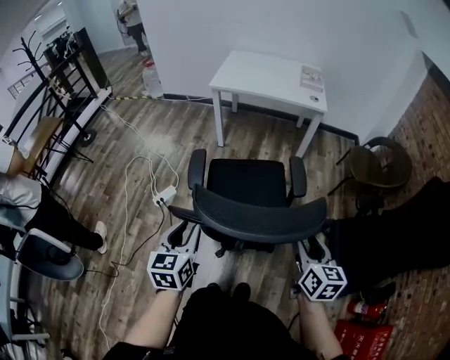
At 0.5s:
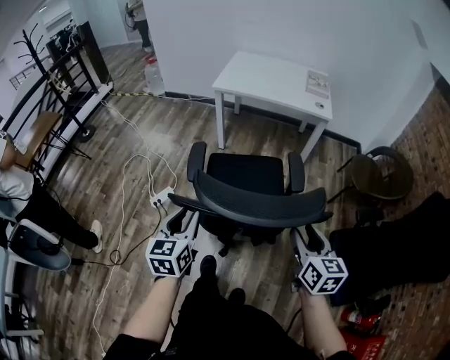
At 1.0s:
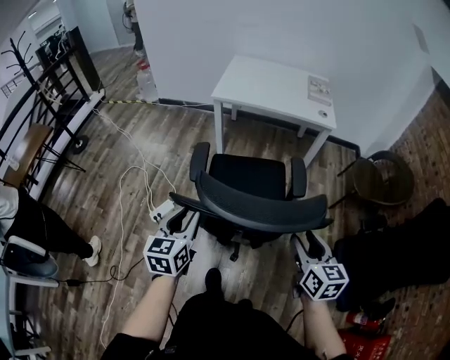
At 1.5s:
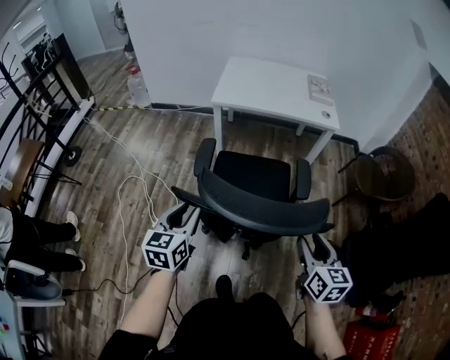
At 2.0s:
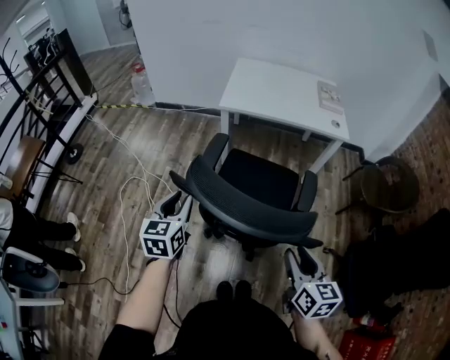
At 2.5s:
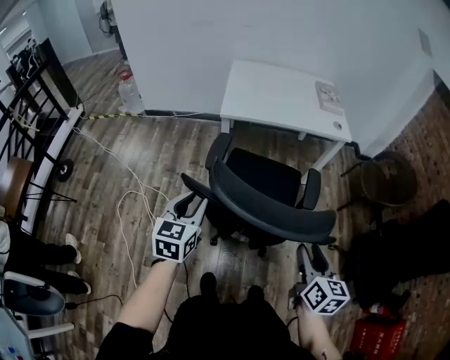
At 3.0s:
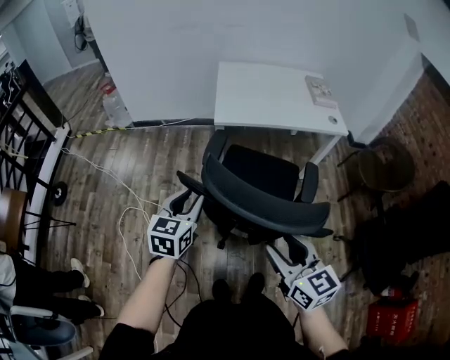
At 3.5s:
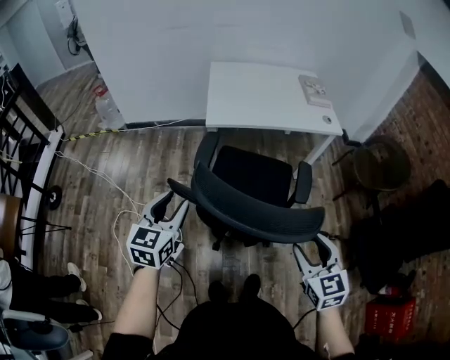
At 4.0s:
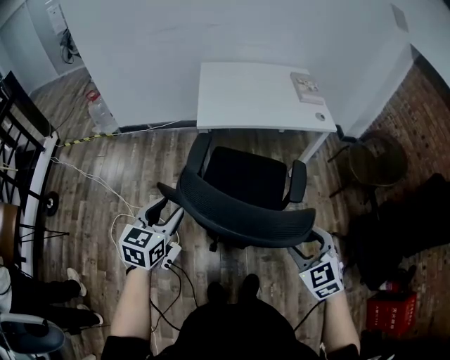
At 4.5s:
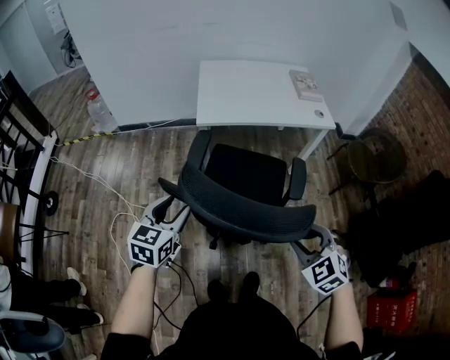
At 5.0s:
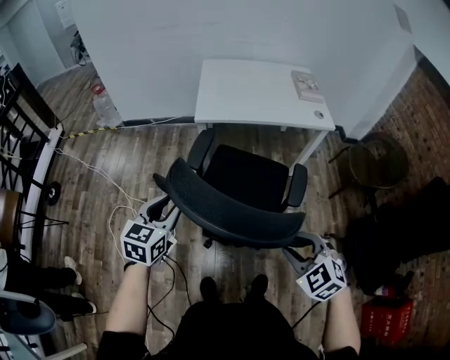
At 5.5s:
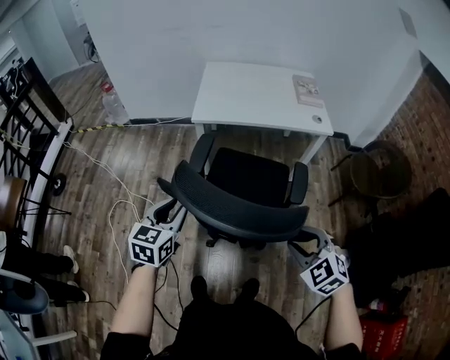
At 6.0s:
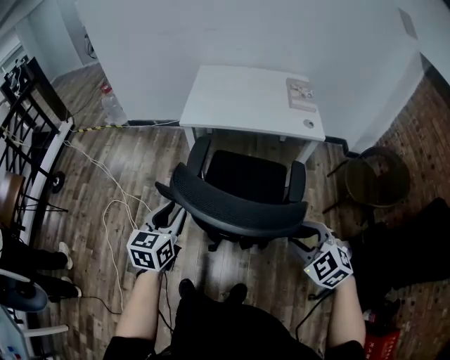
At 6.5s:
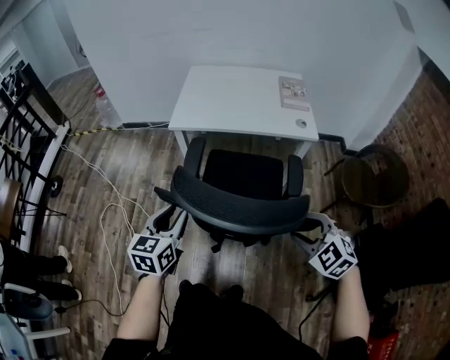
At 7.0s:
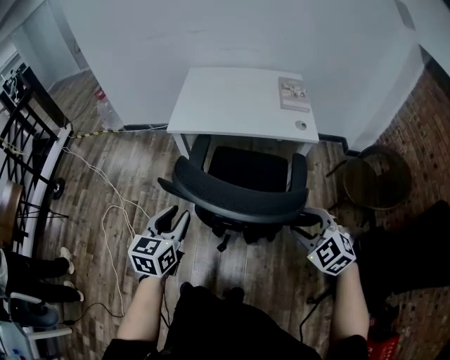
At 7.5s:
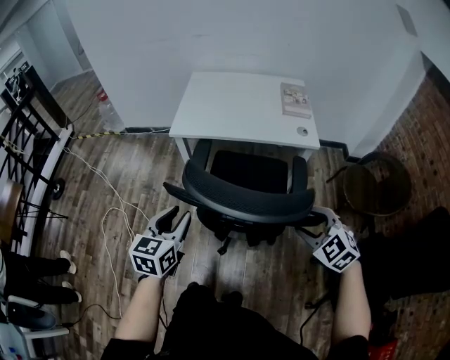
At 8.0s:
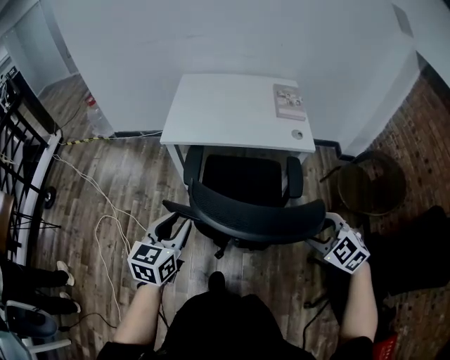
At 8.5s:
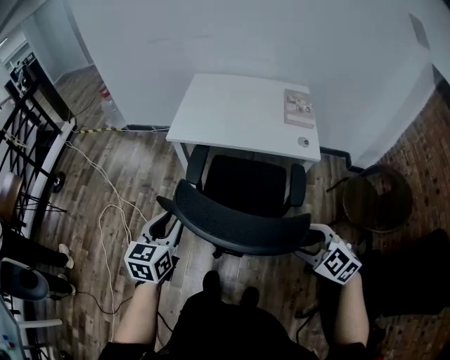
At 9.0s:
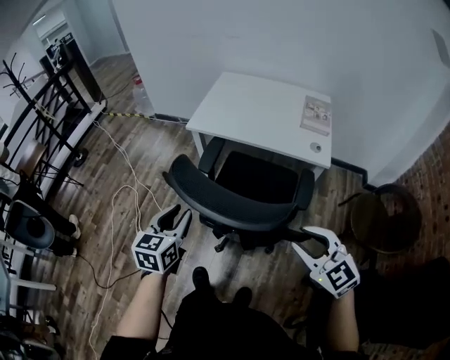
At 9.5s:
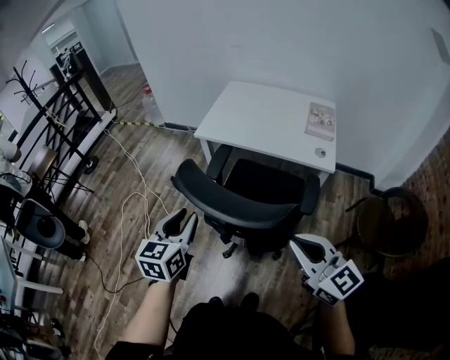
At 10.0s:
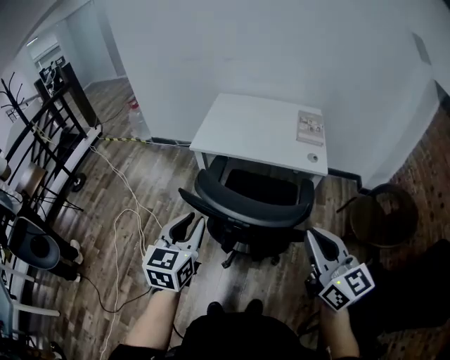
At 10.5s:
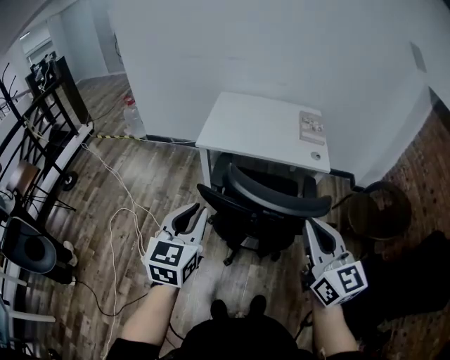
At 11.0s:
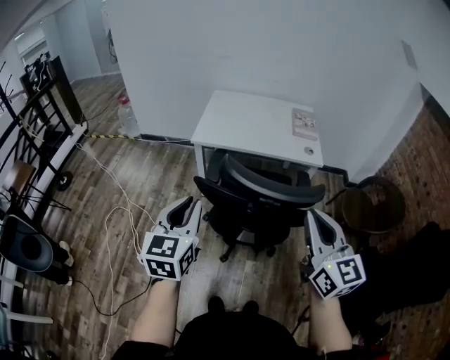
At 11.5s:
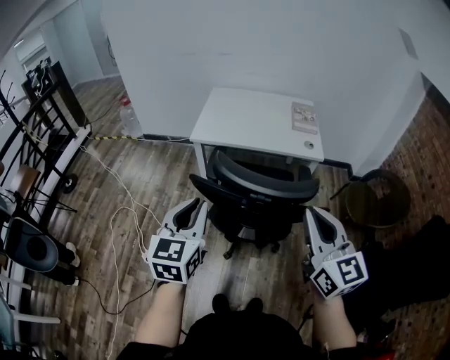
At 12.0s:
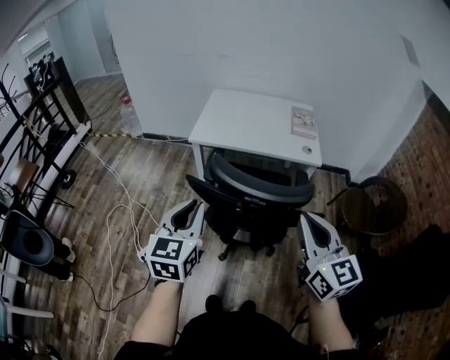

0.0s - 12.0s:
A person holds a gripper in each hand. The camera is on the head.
0.0s - 2.0s: Both grippers travel together forward and to the left, some 35 cm.
2.0s - 4.0s: Both grippers move forward and to the left, about 20 cm. The left gripper rotates some 30 degrees, while the right gripper rolls counterclockwise, seen from behind, by approximately 40 degrees, and opens up.
4.0s - 6.0s: Both grippers move to the right, about 20 cm. The right gripper rotates roughly 20 degrees.
6.0s - 8.0s: The two grippers go approximately 15 cm to the right and forward.
8.0s - 10.0s: The left gripper moves upward and backward, about 15 cm; the right gripper moves upward, some 20 cm, tips its fingers upward by roughly 50 degrees, and closes its fingers.
10.0s - 12.0s: The right gripper moves to the left, roughly 5 cm.

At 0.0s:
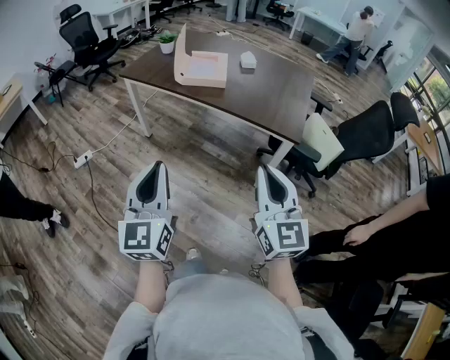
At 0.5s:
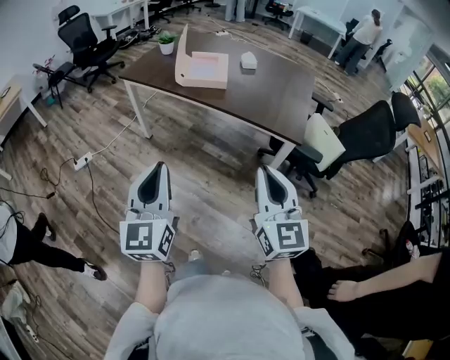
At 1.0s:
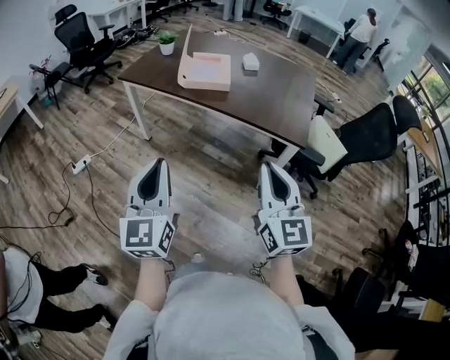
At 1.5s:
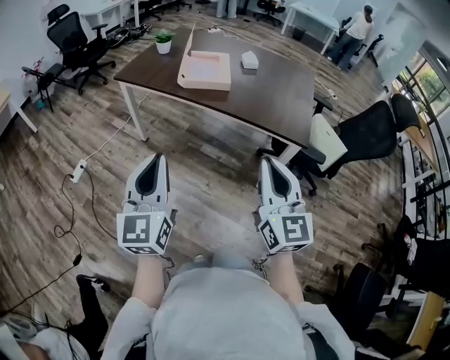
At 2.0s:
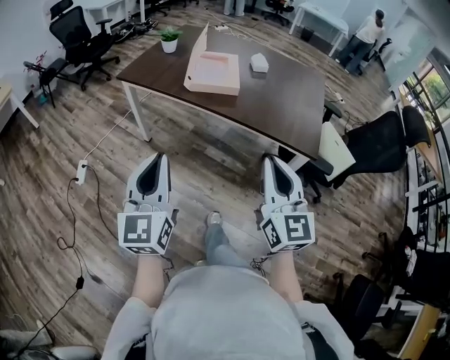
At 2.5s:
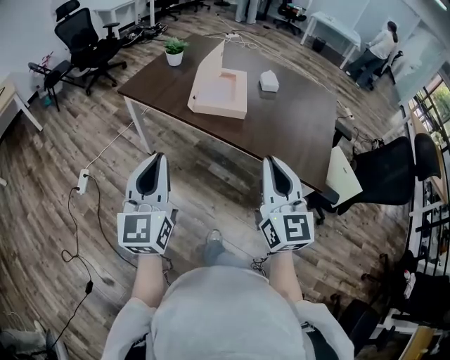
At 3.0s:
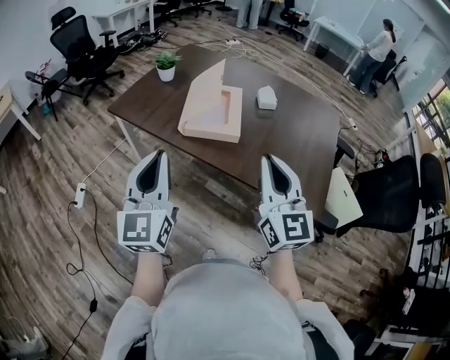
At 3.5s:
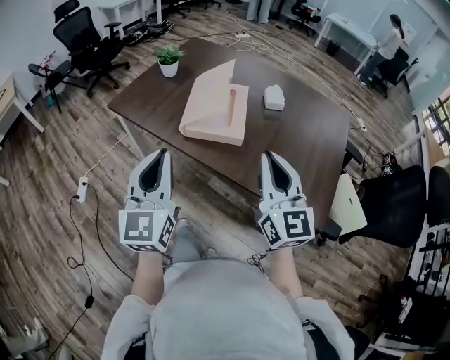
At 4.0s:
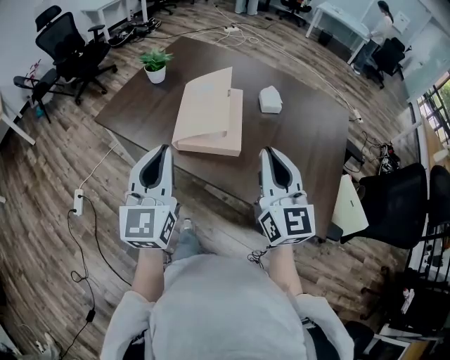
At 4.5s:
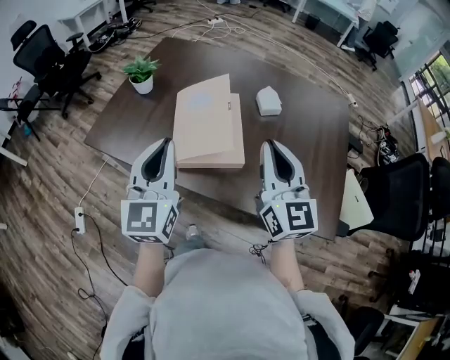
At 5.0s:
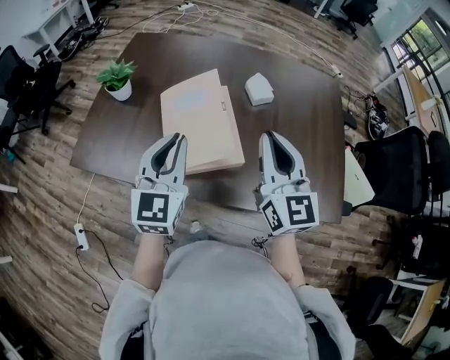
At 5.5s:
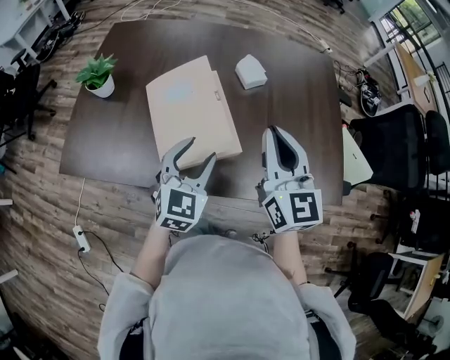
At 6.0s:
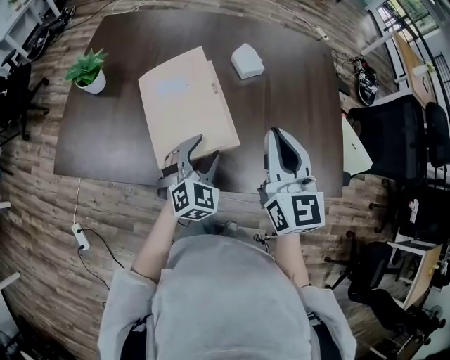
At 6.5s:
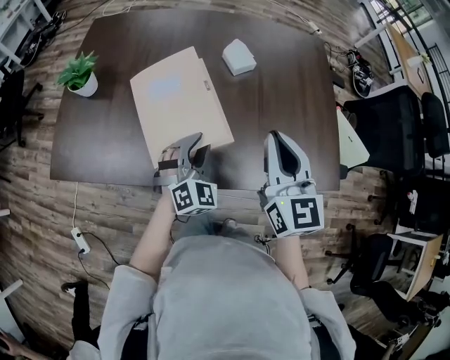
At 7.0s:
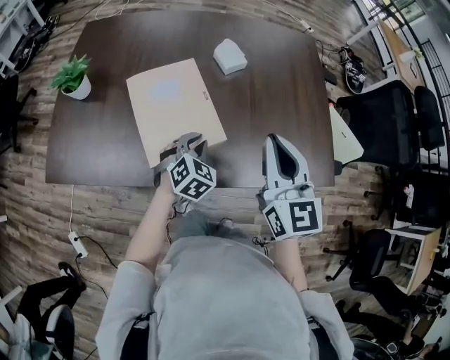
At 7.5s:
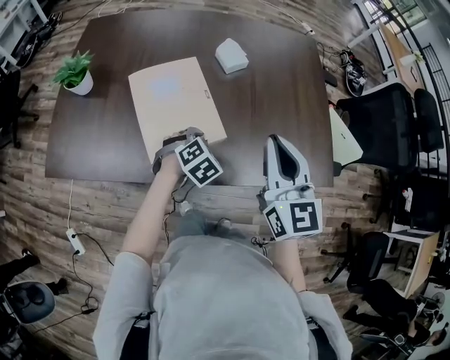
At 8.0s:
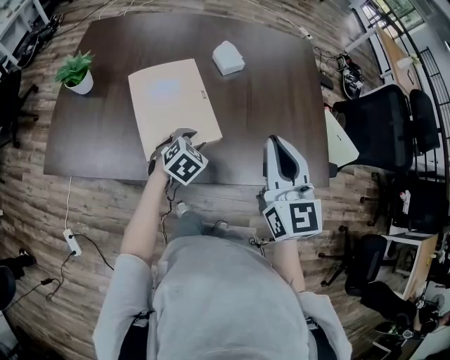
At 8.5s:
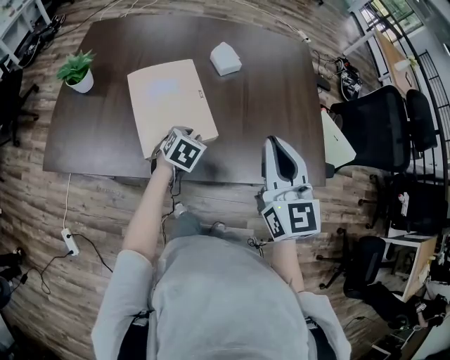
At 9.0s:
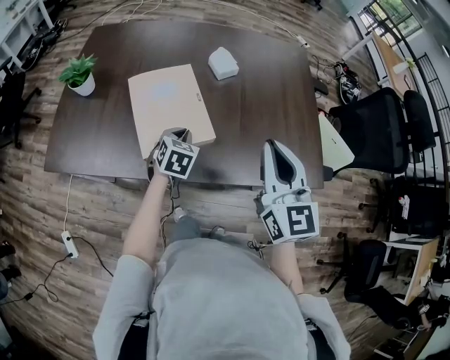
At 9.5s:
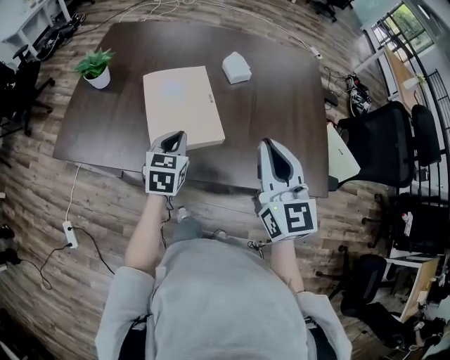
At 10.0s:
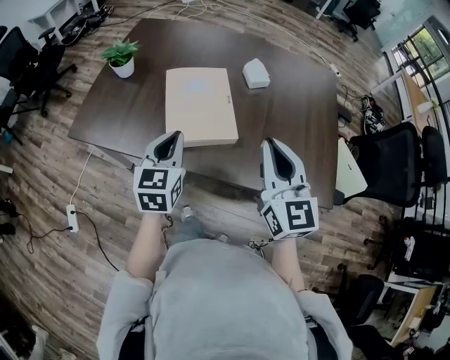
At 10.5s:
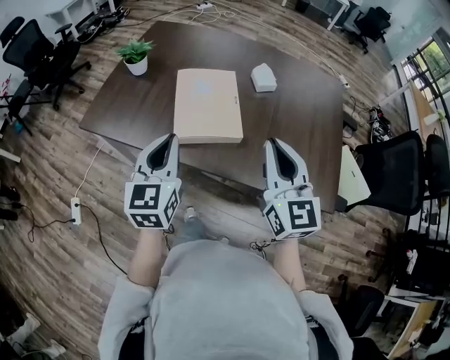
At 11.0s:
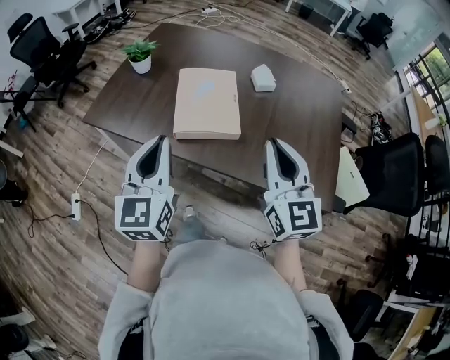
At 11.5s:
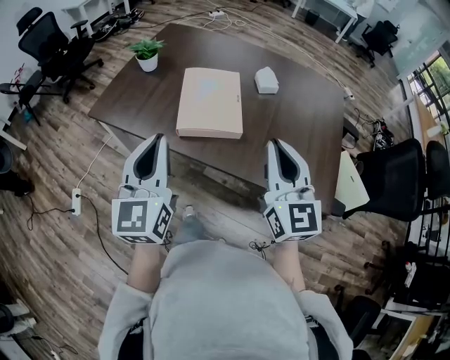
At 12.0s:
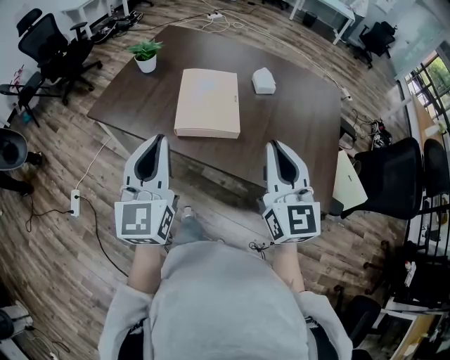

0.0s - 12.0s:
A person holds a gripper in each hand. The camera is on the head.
0.0s - 2.0s: Both grippers move forward and to the left, approximately 15 cm.
2.0s - 4.0s: The pair of grippers is taken forward, some 40 cm.
4.0s - 6.0s: The right gripper moves approximately 15 cm, and swivels roughly 30 degrees; the left gripper shifts approximately 25 cm downward, angles its fingers downward, by roughly 30 degrees, and opens.
6.0s - 8.0s: The right gripper ends up approximately 5 cm from where it was. Meanwhile the left gripper goes approximately 5 cm downward, changes its angle by roughly 30 degrees, and closes and opens again.
8.0s - 10.0s: The right gripper shifts by about 5 cm; the left gripper goes roughly 20 cm upward, to the left and backward, tilts its fingers approximately 30 degrees upward, and closes its fingers.
10.0s - 12.0s: The left gripper goes about 20 cm backward and upward, and turns by some 30 degrees. Meanwhile the right gripper heads backward, covering some 10 cm.

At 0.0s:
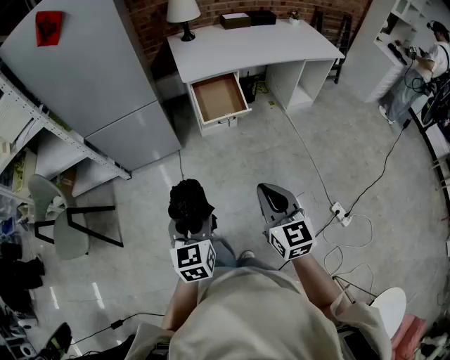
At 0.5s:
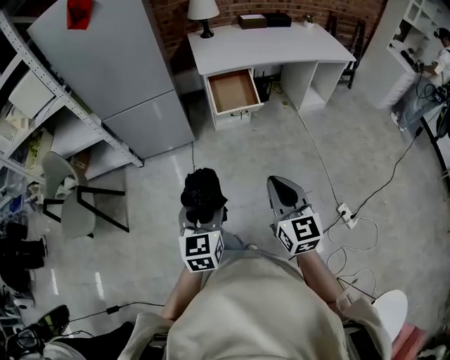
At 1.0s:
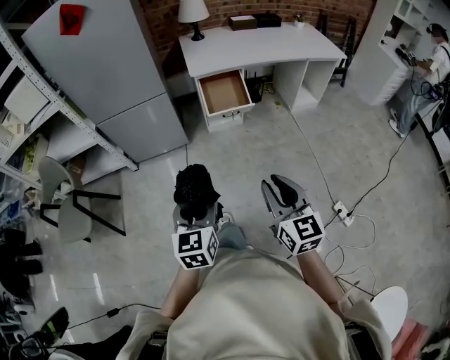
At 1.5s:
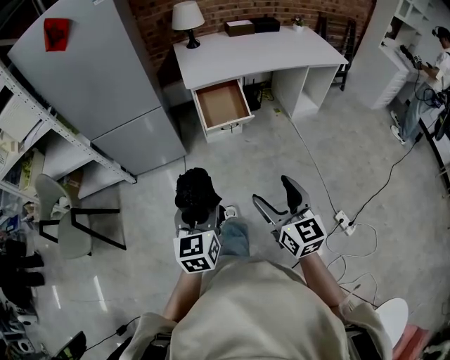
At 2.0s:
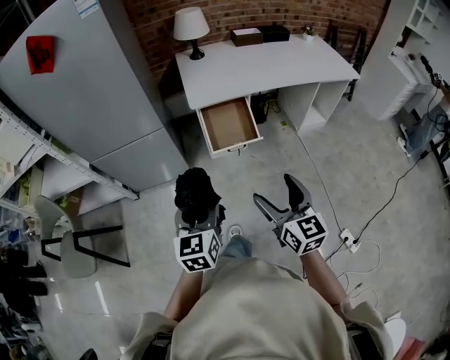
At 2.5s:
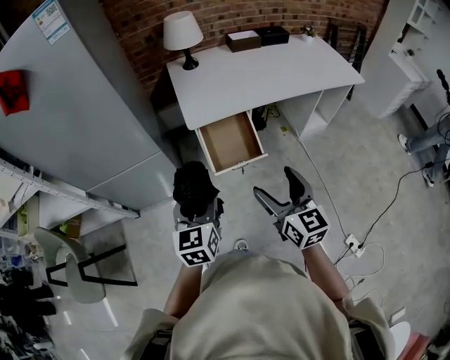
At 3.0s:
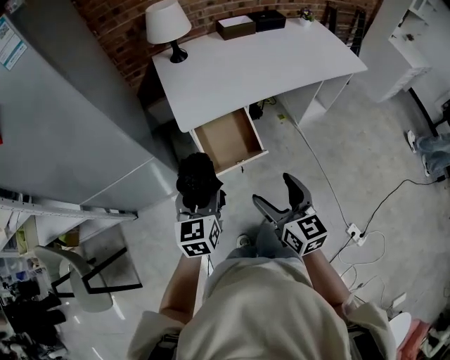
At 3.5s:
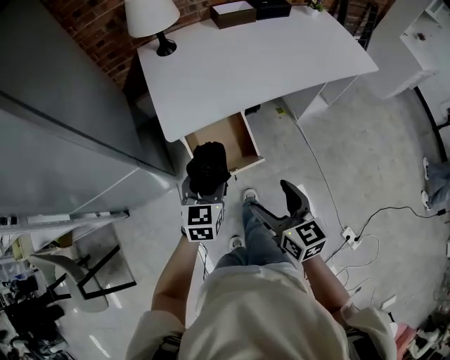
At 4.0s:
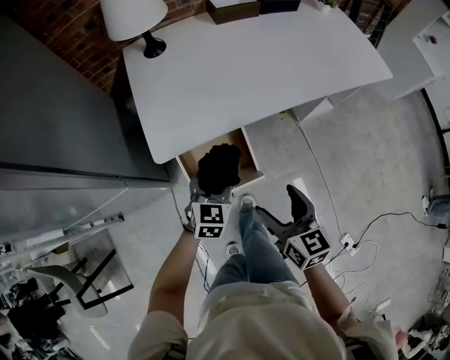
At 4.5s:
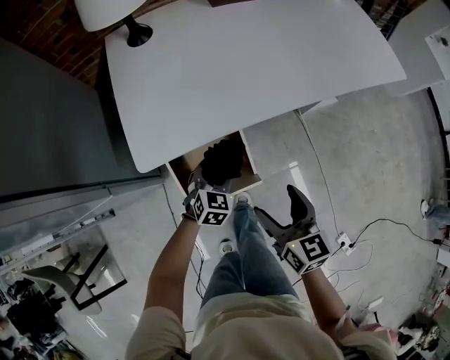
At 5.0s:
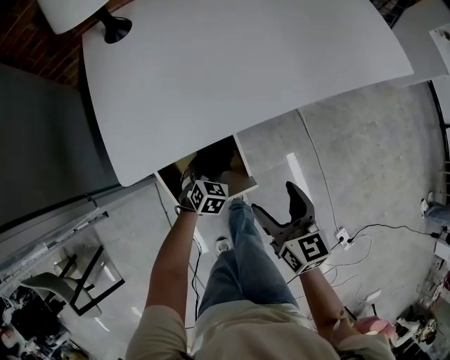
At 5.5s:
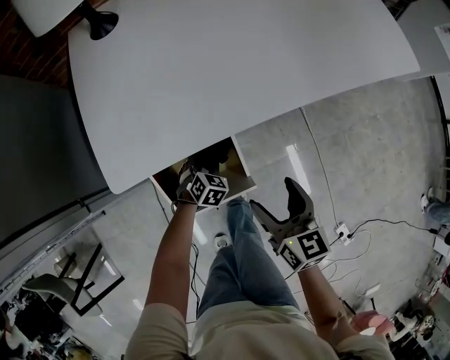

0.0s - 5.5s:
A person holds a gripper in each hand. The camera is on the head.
0.0s - 2.0s: Both grippers travel together forward, roughly 15 cm. The right gripper opens its fingers.
2.0s - 3.5s: Both grippers move forward, some 30 cm.
3.5s - 5.5s: The left gripper goes some 40 cm downward and forward, and angles its fingers downward, by about 40 degrees. The right gripper goes approximately 25 cm forward, downward and to the right.
